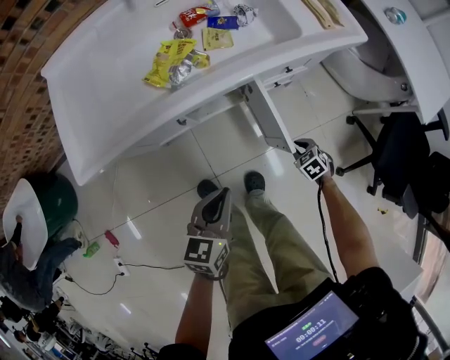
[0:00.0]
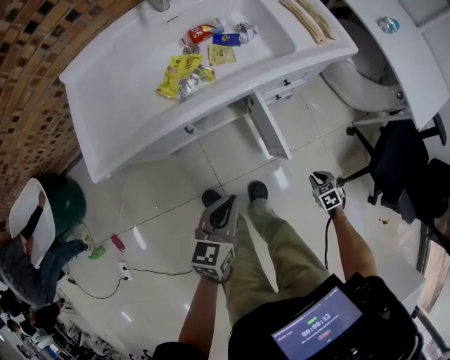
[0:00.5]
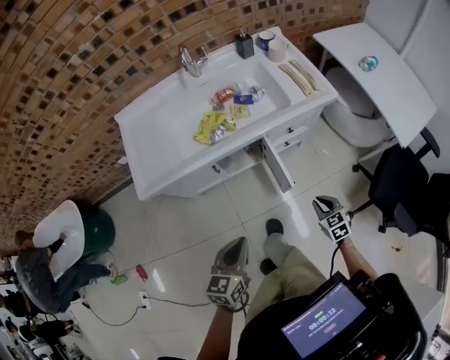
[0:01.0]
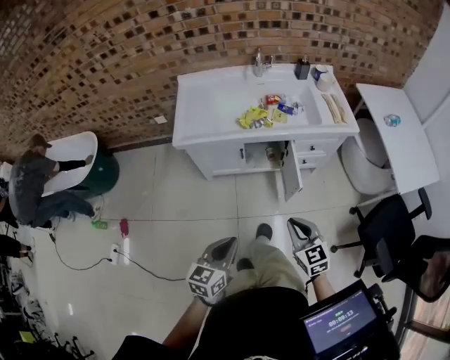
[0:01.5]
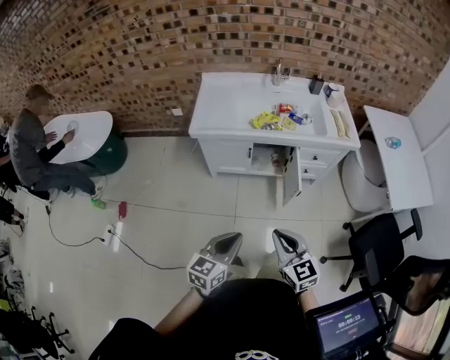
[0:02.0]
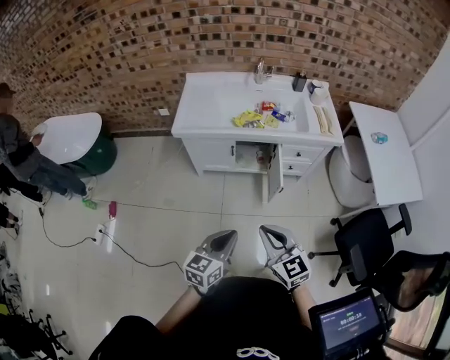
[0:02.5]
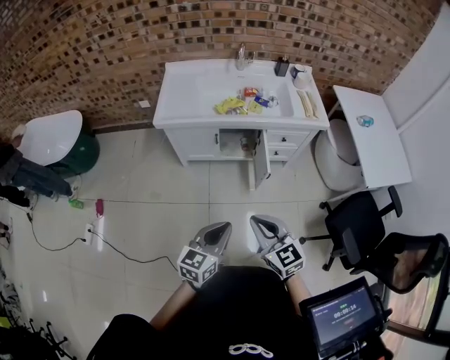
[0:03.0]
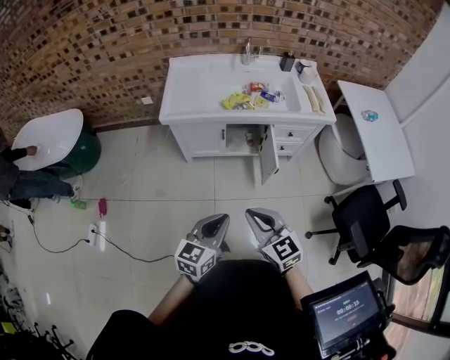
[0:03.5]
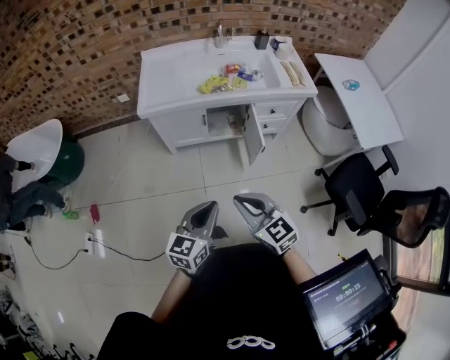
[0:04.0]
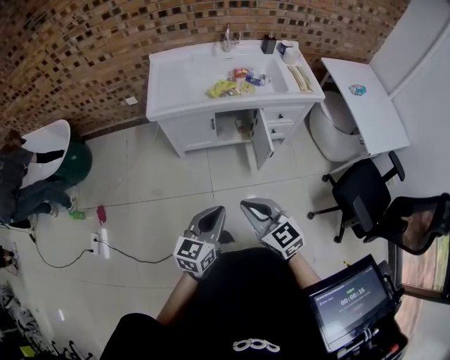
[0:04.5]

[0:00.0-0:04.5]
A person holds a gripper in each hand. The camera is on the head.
0:00.0 to 0:02.0: The left gripper heads backward and upward, covering approximately 40 cm; the right gripper heads upward and backward, covering some 60 cm, and tips its fingers upward by roughly 50 degrees.
0:02.0 to 0:04.5: The left gripper moves roughly 5 cm to the right and comes back; the right gripper travels to the left by roughly 5 cm.

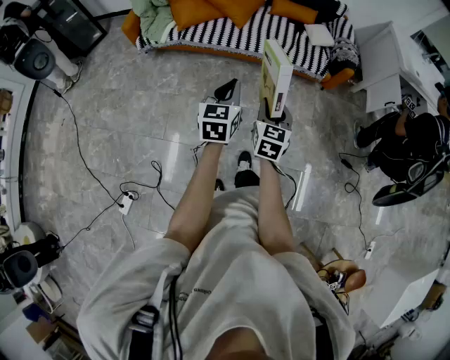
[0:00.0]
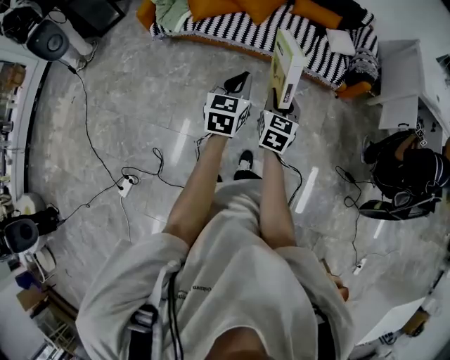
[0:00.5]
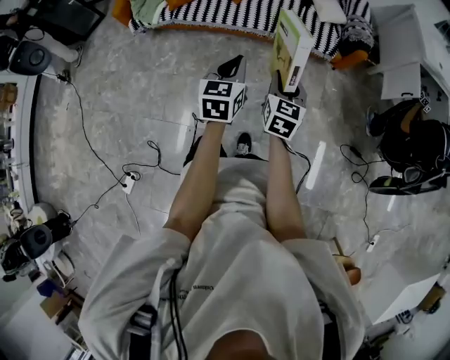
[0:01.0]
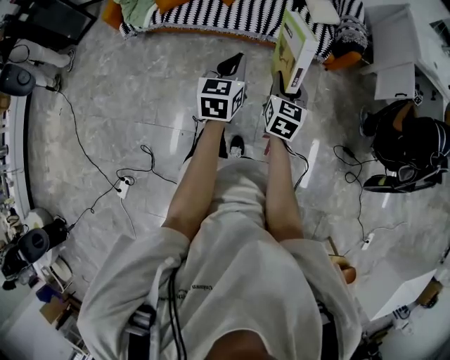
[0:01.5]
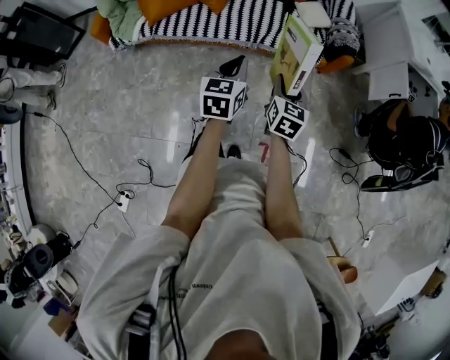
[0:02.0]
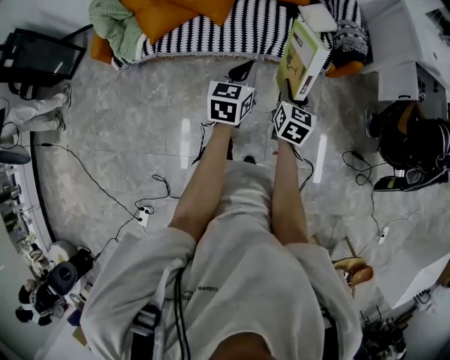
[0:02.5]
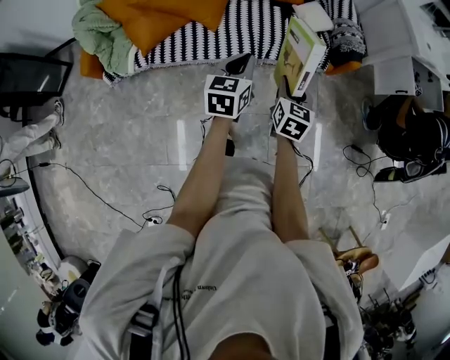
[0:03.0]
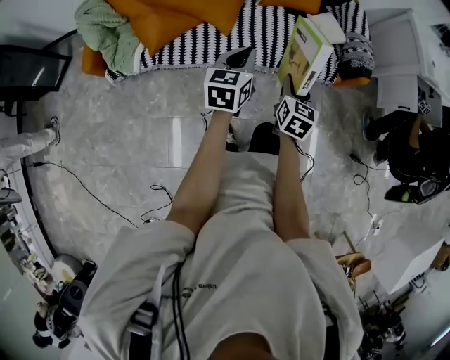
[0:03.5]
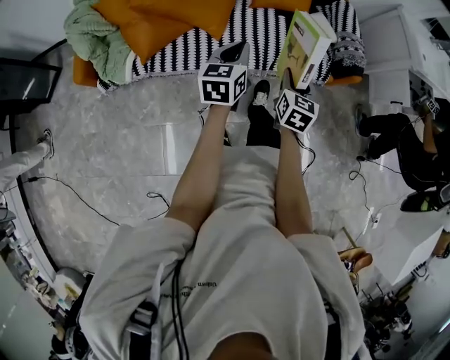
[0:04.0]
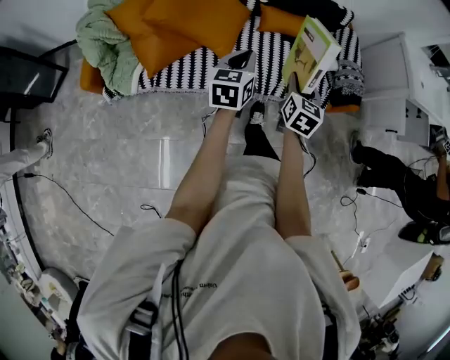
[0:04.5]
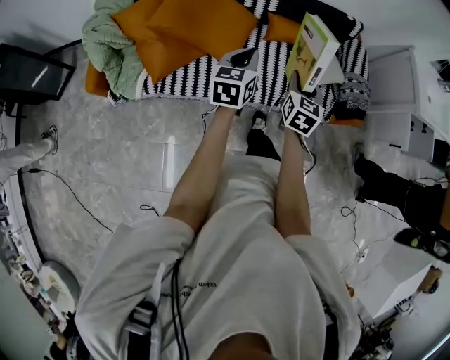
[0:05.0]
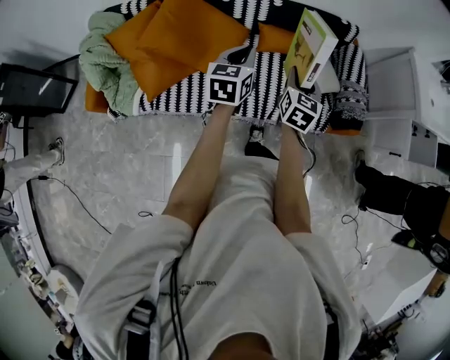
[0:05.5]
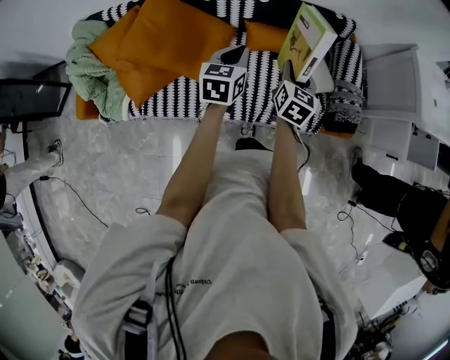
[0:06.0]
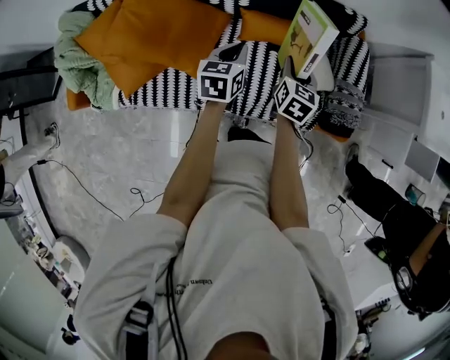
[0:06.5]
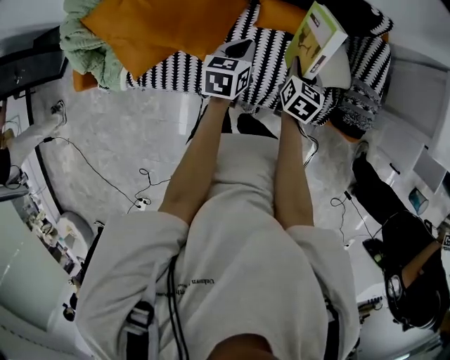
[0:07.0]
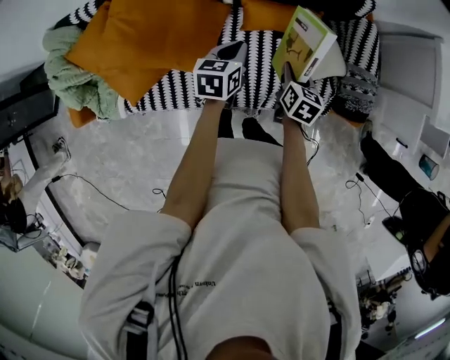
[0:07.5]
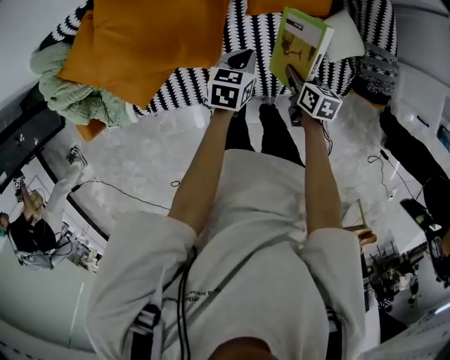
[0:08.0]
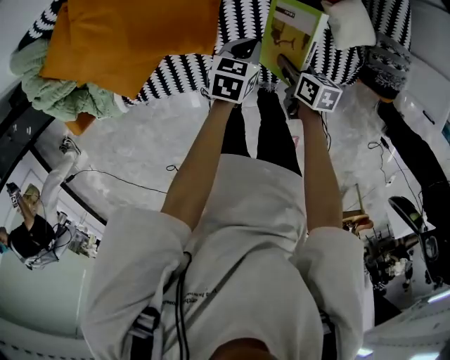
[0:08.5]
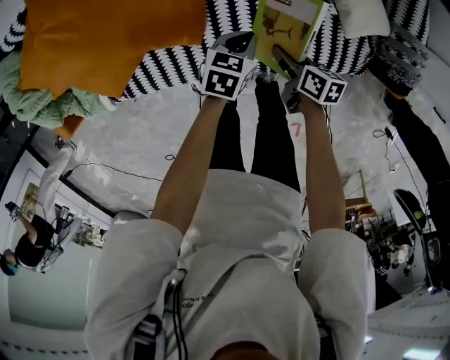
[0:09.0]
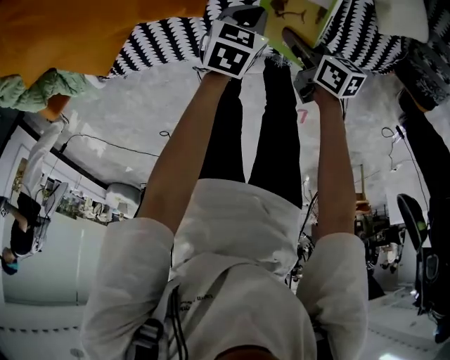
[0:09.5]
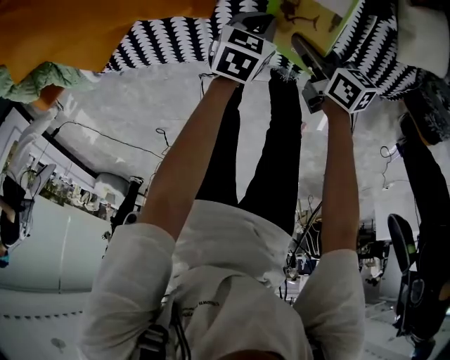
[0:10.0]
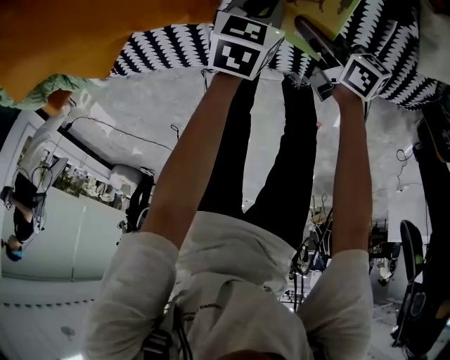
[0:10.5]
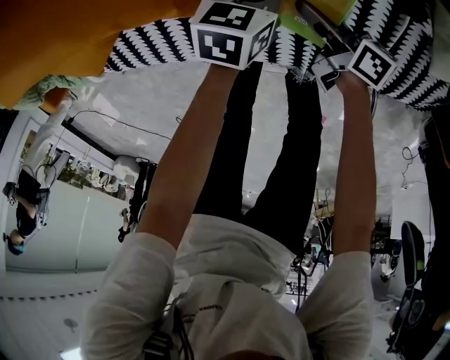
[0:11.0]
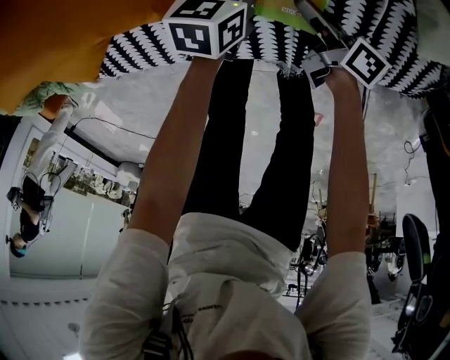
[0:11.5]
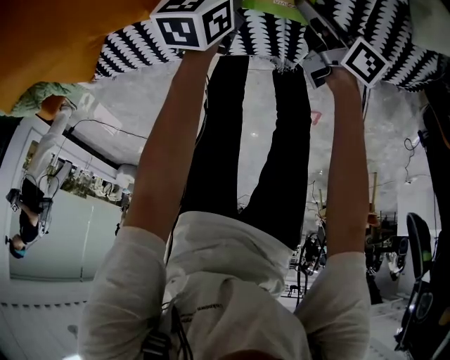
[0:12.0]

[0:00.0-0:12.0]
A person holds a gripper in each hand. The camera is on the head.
0:00.0 to 0:02.0: Both grippers move forward and to the right, approximately 25 cm.
0:02.0 to 0:04.0: Both grippers move forward and to the left, some 30 cm.
0:04.0 to 0:06.0: Both grippers move forward, approximately 30 cm.
0:06.0 to 0:08.0: Both grippers travel together downward, approximately 20 cm. The right gripper rotates about 40 degrees. The left gripper swivels roughly 30 degrees.
0:08.0 to 0:10.0: The grippers both shift downward by some 25 cm. The right gripper turns by some 30 degrees.
0:10.0 to 0:12.0: The left gripper travels forward by approximately 5 cm, while the right gripper moves to the right, approximately 5 cm, and changes its angle by approximately 20 degrees.

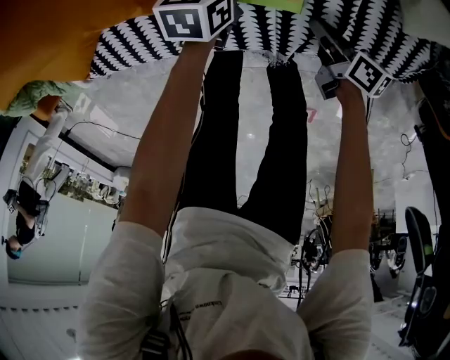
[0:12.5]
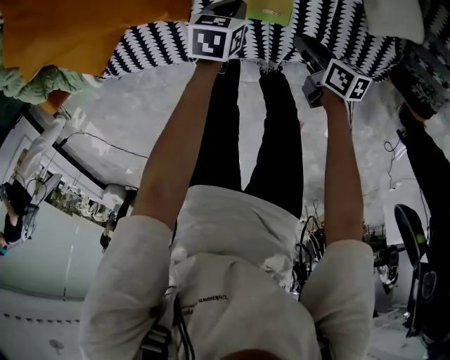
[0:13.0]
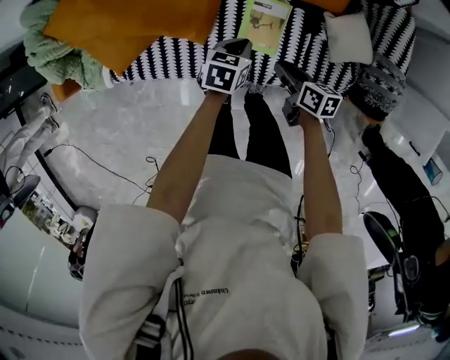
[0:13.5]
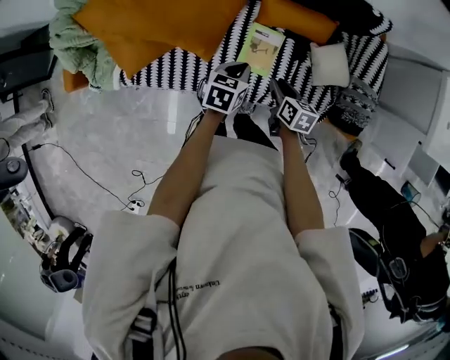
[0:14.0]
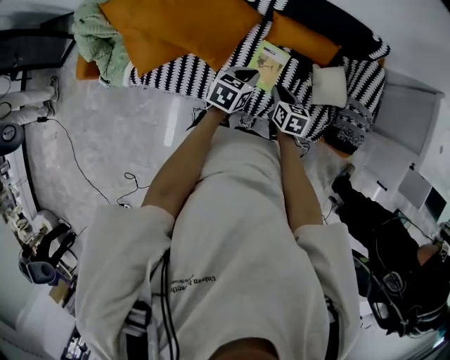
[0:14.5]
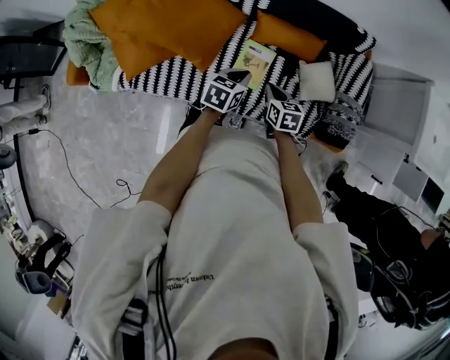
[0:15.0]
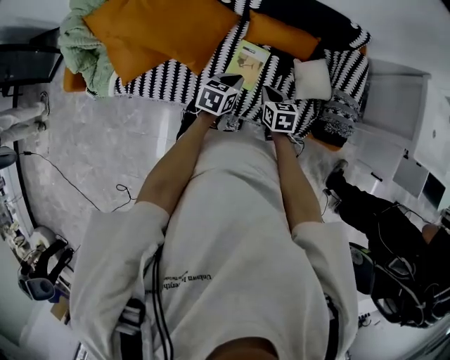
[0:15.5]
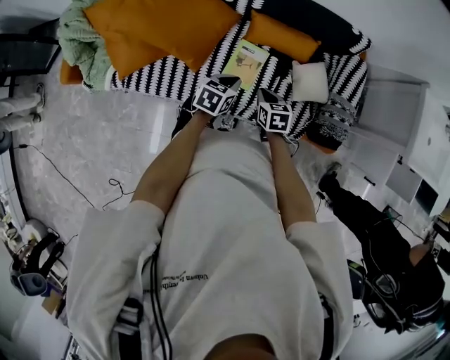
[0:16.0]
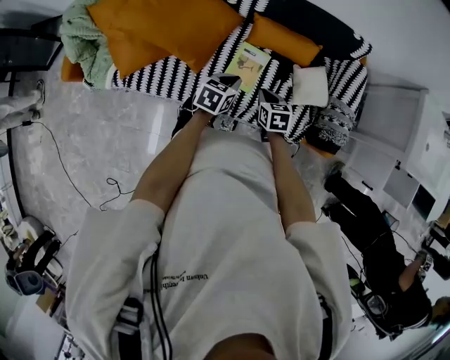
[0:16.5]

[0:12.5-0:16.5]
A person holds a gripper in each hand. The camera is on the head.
0:12.5 to 0:14.5: Both grippers travel together upward, some 35 cm. The right gripper twists approximately 50 degrees counterclockwise, seen from behind.
0:14.5 to 0:16.5: The grippers make only small movements.

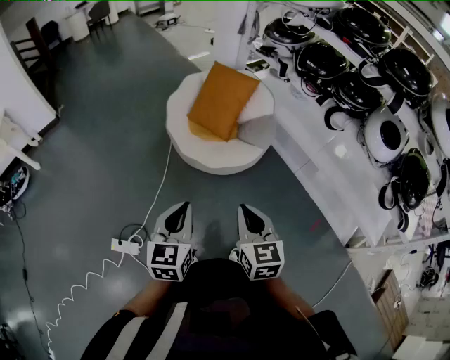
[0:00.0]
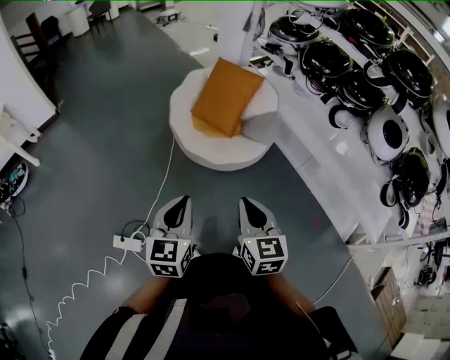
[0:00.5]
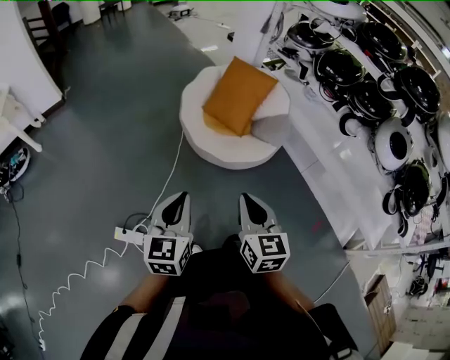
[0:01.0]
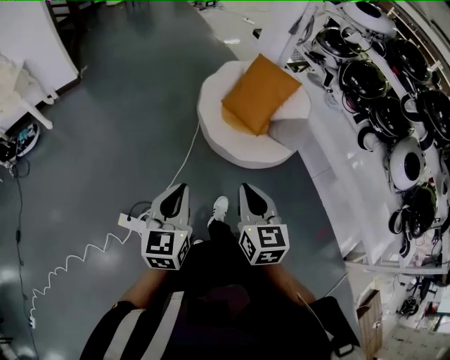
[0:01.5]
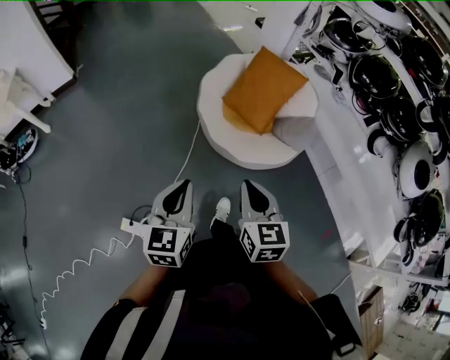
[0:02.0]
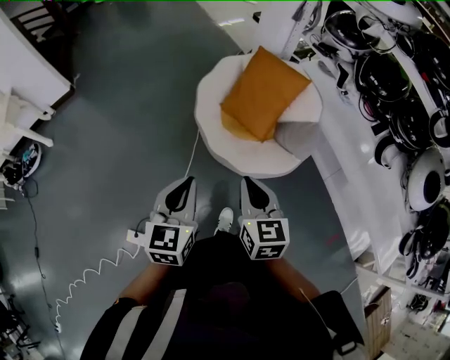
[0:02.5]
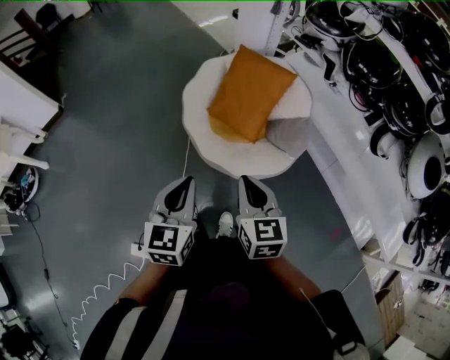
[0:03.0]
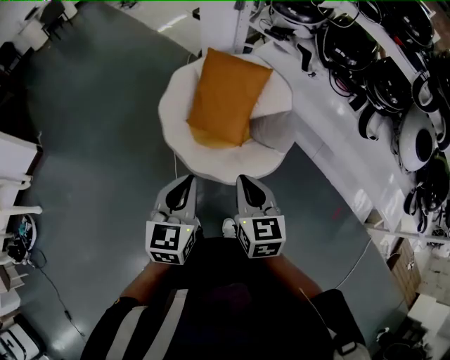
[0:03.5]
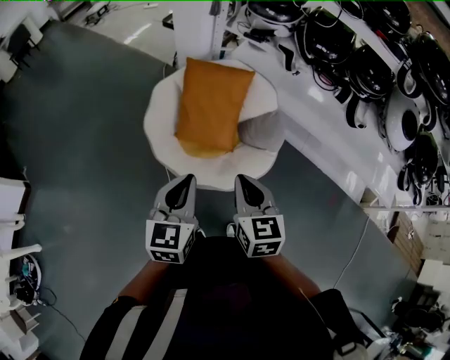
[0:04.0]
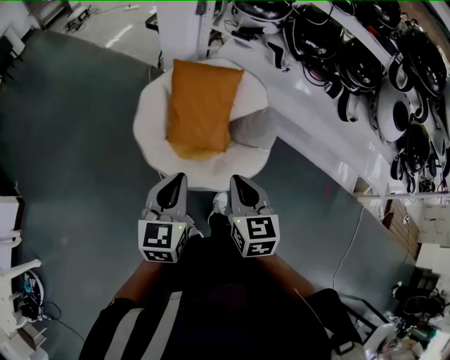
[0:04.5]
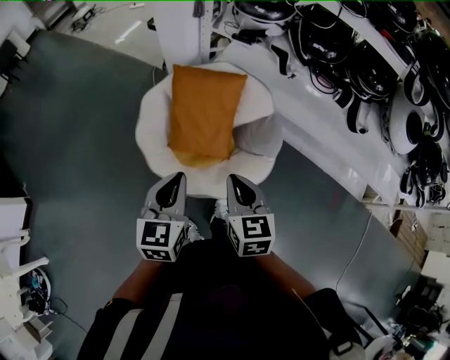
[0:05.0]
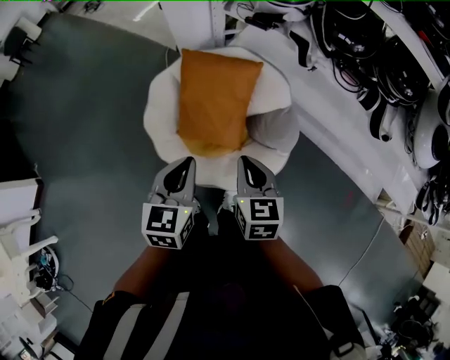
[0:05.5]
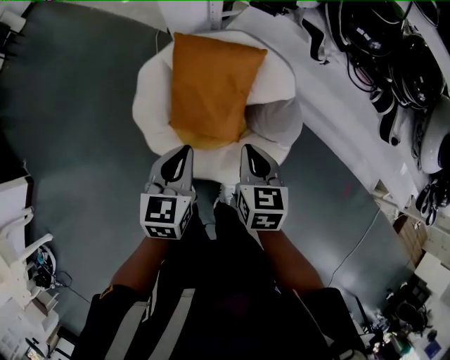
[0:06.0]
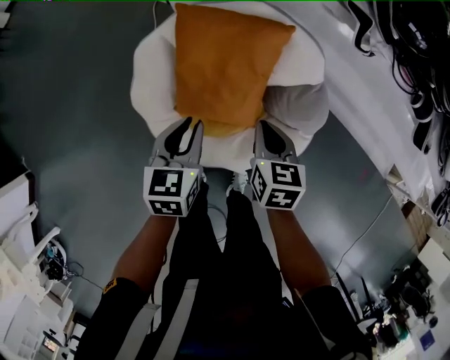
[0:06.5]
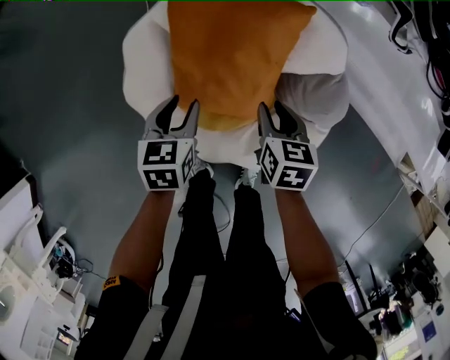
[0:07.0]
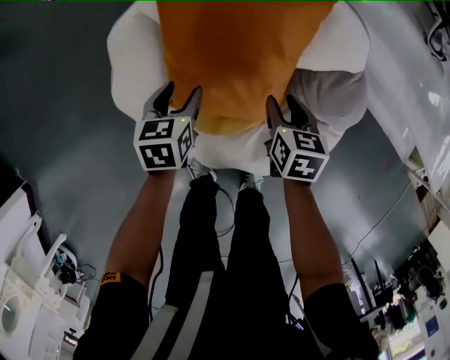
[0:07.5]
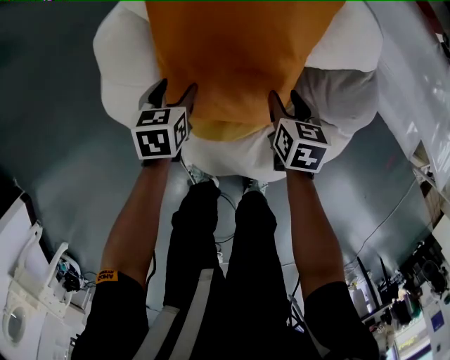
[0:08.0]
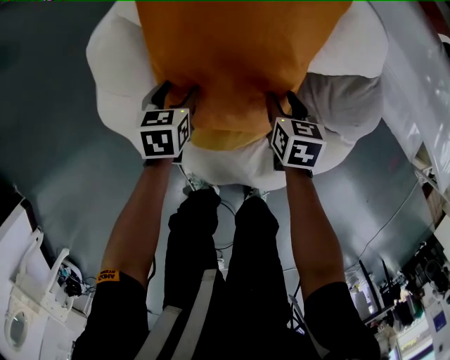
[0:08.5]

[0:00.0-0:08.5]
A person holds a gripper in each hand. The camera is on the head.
0:00.0 to 0:02.0: The right gripper shifts some 20 cm forward and to the left. Meanwhile the left gripper goes some 20 cm to the left and forward.
0:02.0 to 0:04.0: The left gripper shifts by about 40 cm, and changes its angle by about 30 degrees. The right gripper ends up approximately 30 cm from where it was, and changes its angle by some 30 degrees.
0:04.0 to 0:06.5: The grippers both shift forward and downward by approximately 40 cm. The right gripper turns by roughly 20 degrees.
0:06.5 to 0:08.5: Both grippers move downward, approximately 35 cm. The right gripper opens up, while the left gripper opens its fingers.
